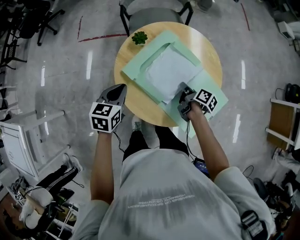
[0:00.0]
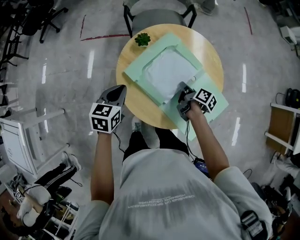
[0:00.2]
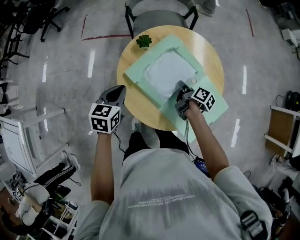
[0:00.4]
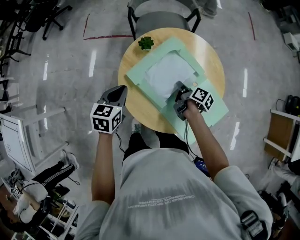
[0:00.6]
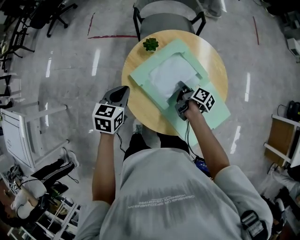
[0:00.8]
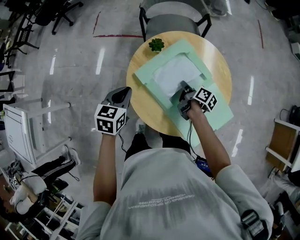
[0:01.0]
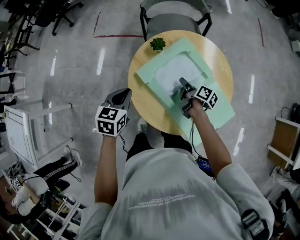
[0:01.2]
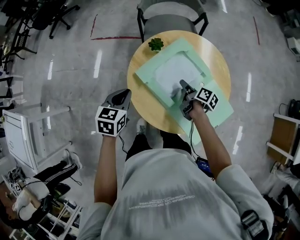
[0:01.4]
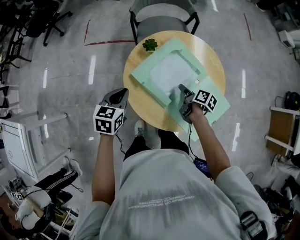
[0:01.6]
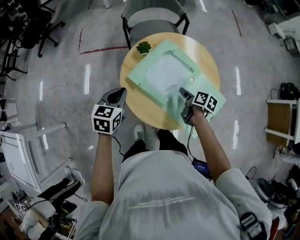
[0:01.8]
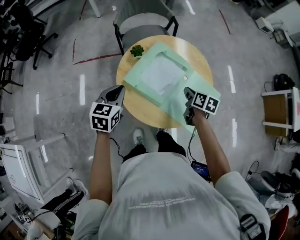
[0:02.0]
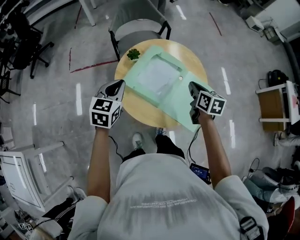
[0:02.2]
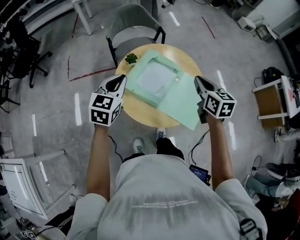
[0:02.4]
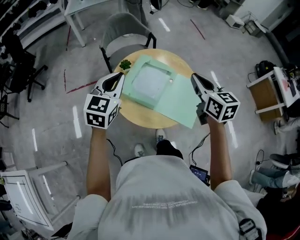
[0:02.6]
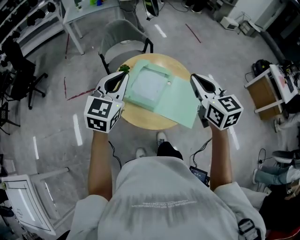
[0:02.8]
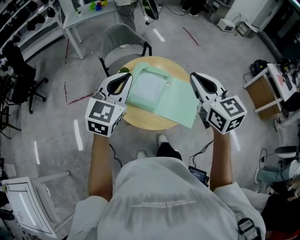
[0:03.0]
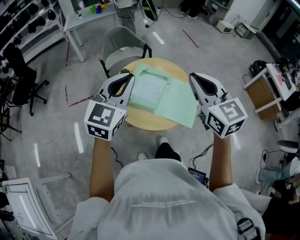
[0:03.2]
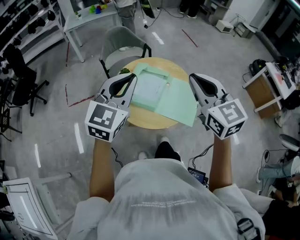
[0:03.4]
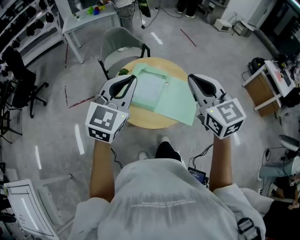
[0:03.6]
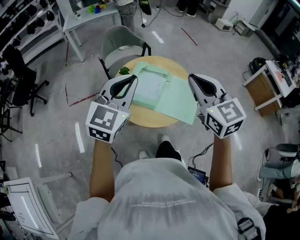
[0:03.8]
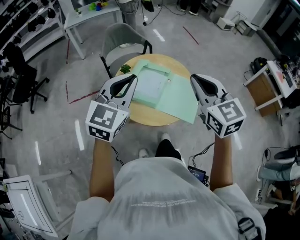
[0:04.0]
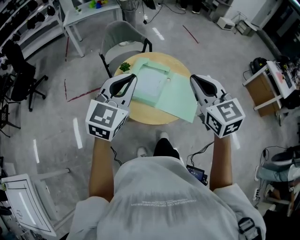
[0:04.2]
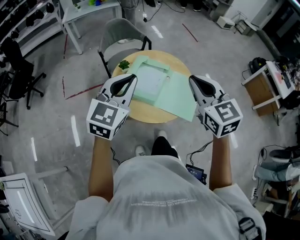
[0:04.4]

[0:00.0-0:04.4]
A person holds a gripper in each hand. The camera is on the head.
0:00.0 to 0:01.4: The right gripper moves to the left, roughly 5 cm, and opens up.
0:01.4 to 0:03.0: The left gripper is displaced upward by about 30 cm, and tilts its fingers about 30 degrees upward, while the right gripper travels upward by approximately 40 cm, twists about 70 degrees counterclockwise, seen from behind, and closes its fingers.
0:03.0 to 0:04.4: There are only small adjustments of the grippers.

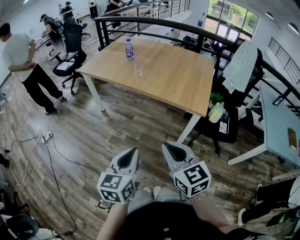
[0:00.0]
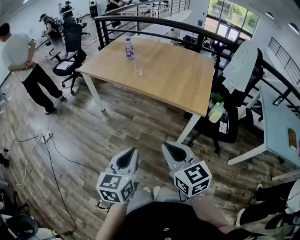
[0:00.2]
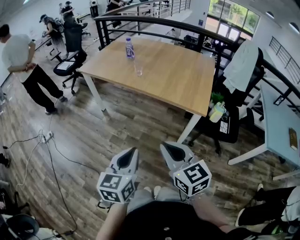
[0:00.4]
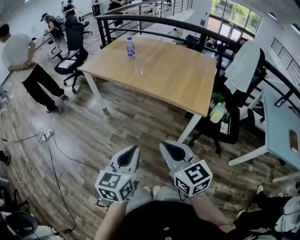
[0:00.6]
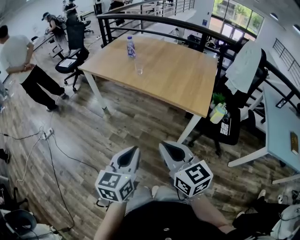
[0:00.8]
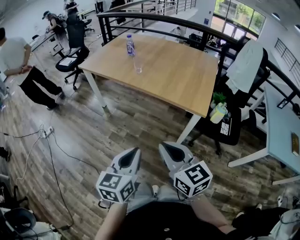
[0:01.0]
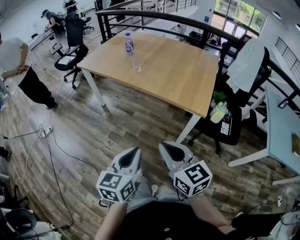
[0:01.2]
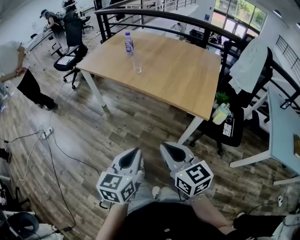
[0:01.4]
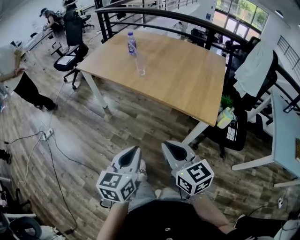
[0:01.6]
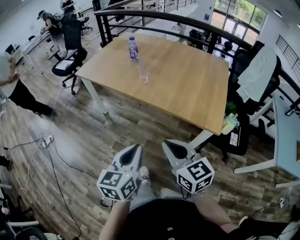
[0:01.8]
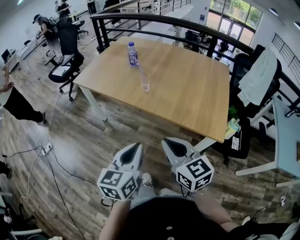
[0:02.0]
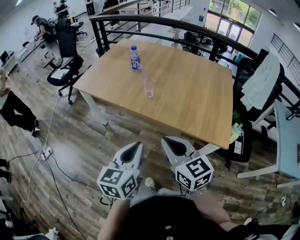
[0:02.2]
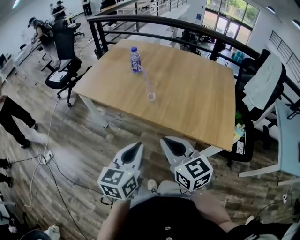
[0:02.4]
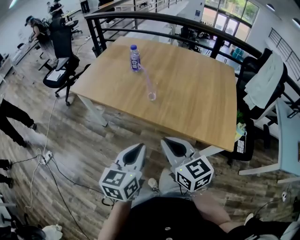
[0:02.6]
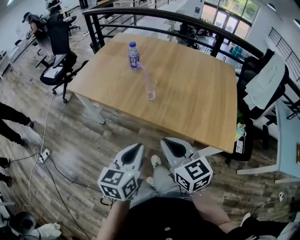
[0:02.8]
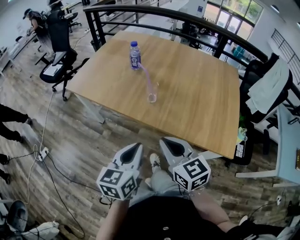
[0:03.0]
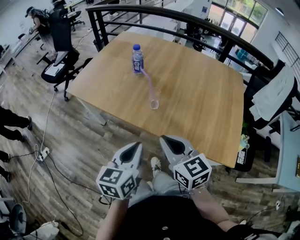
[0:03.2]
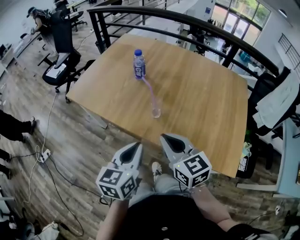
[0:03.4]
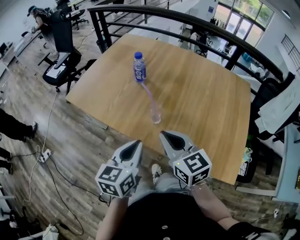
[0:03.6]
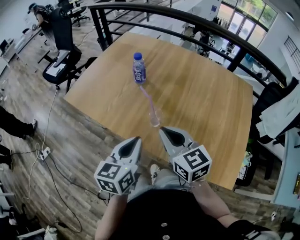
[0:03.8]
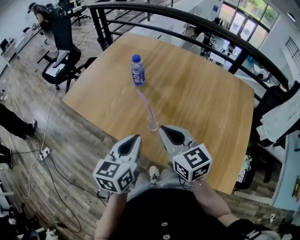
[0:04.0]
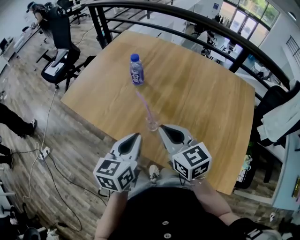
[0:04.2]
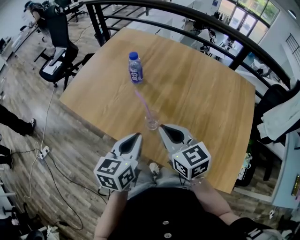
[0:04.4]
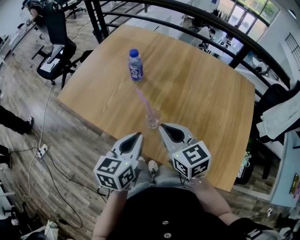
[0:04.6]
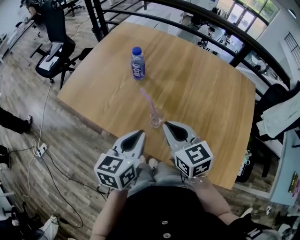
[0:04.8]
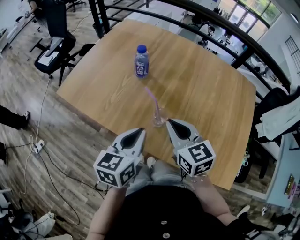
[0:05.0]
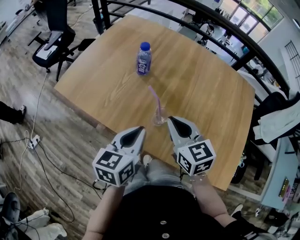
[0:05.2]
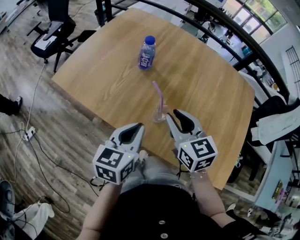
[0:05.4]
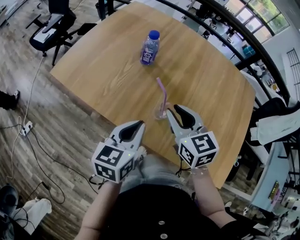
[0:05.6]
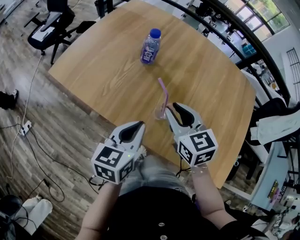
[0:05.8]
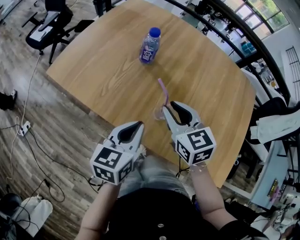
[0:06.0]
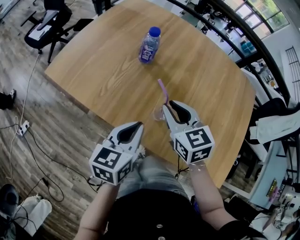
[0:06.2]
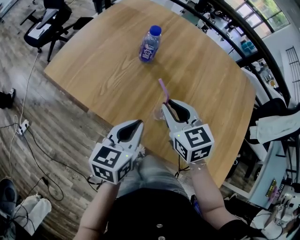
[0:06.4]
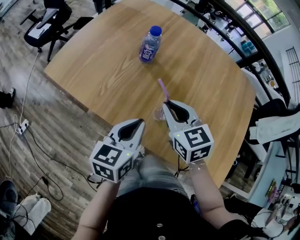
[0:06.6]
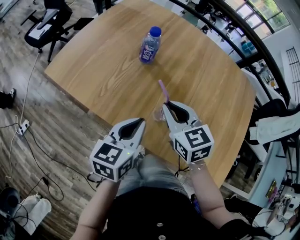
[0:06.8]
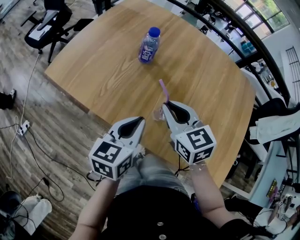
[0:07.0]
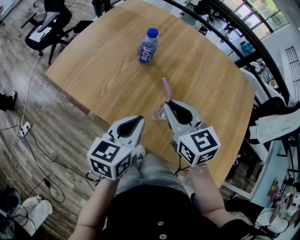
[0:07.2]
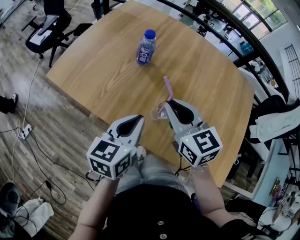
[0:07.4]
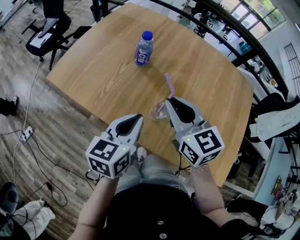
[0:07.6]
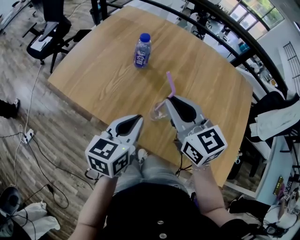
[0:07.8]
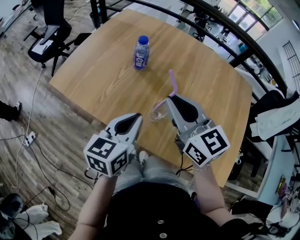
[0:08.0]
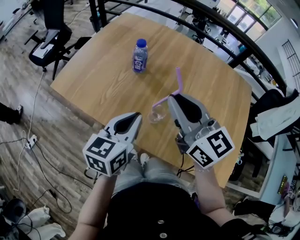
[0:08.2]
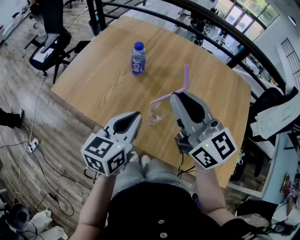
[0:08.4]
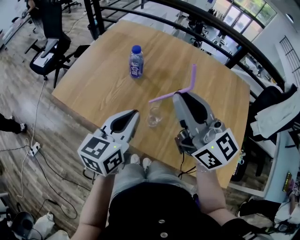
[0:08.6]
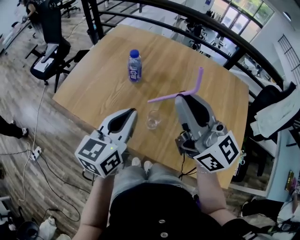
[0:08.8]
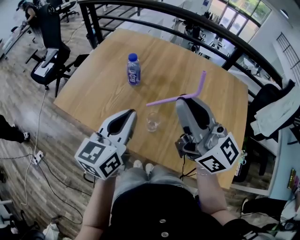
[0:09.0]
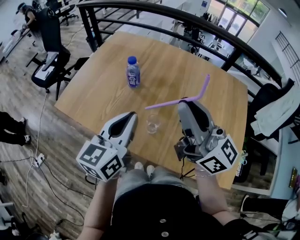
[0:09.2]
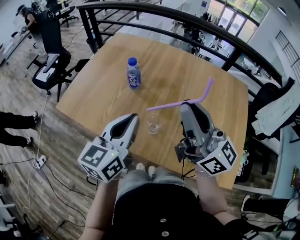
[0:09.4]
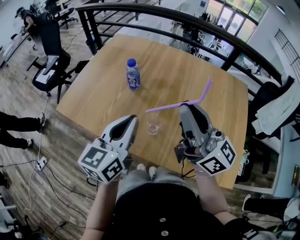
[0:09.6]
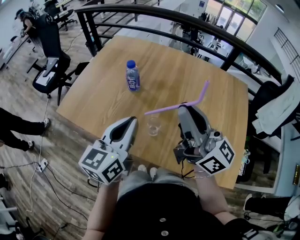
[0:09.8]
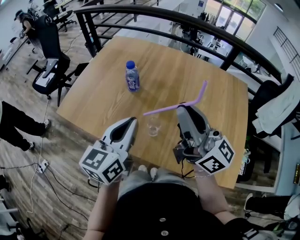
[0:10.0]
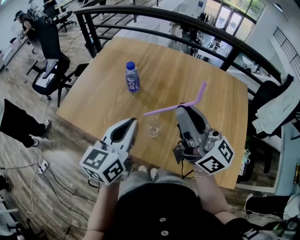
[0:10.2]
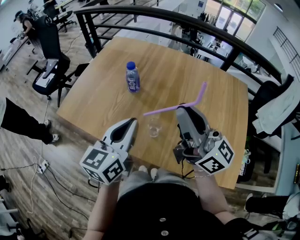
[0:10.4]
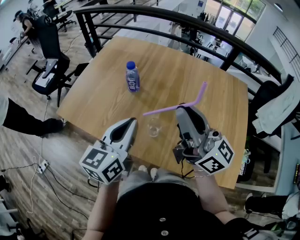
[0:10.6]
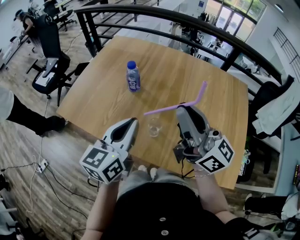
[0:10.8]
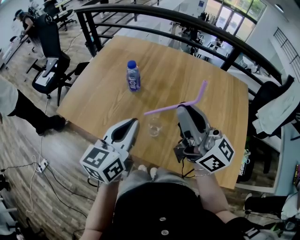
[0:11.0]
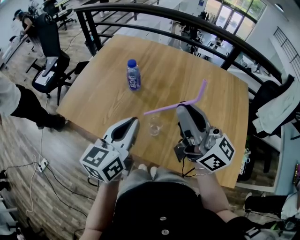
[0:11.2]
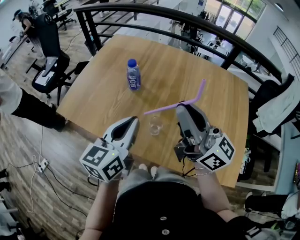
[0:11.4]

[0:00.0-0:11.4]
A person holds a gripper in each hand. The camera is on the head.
0:00.0 to 0:01.4: The right gripper goes about 5 cm forward. The left gripper shifts roughly 10 cm forward and to the right.
0:01.4 to 0:02.8: The right gripper goes roughly 35 cm forward and to the left, while the left gripper goes roughly 35 cm forward.
0:02.8 to 0:04.2: Both grippers move forward, approximately 30 cm.
0:04.2 to 0:05.6: The left gripper shifts by approximately 5 cm. Meanwhile the right gripper travels forward by about 5 cm, and opens up.
0:05.6 to 0:07.2: The grippers move only a little.
0:07.2 to 0:08.6: The right gripper travels upward by roughly 20 cm, and points its fingers approximately 40 degrees further upward. Meanwhile the left gripper travels upward by roughly 10 cm.
0:08.6 to 0:10.0: There are only small adjustments of the grippers.
0:10.0 to 0:11.4: Both grippers stay put.

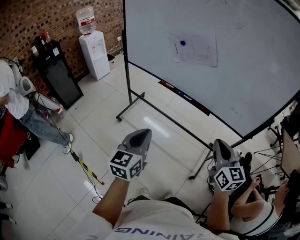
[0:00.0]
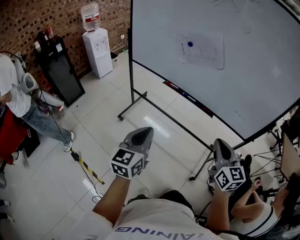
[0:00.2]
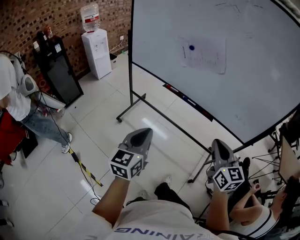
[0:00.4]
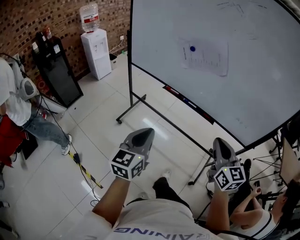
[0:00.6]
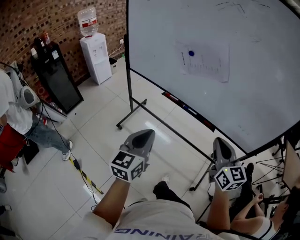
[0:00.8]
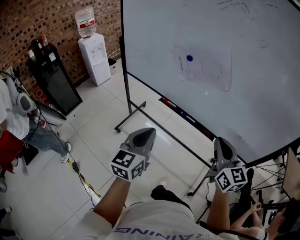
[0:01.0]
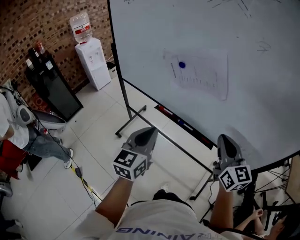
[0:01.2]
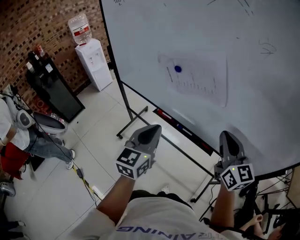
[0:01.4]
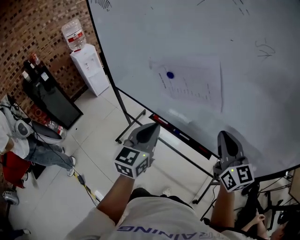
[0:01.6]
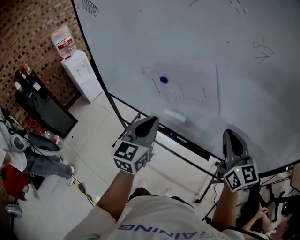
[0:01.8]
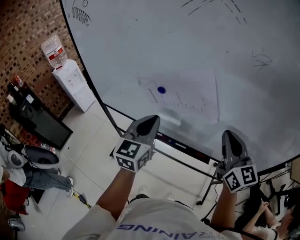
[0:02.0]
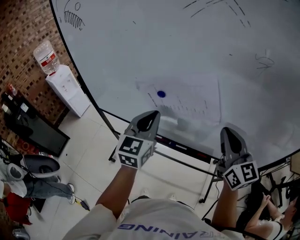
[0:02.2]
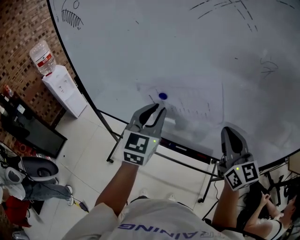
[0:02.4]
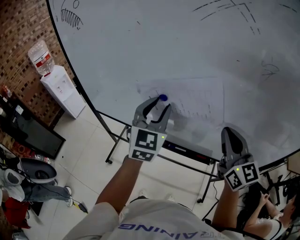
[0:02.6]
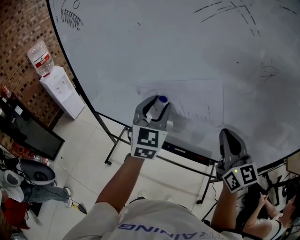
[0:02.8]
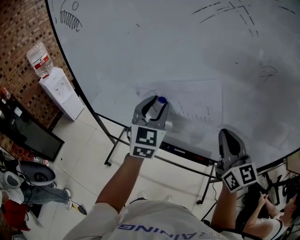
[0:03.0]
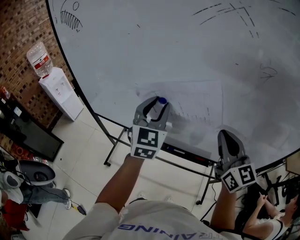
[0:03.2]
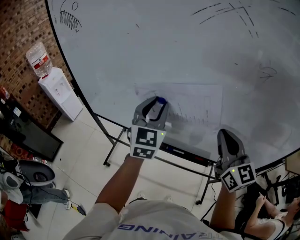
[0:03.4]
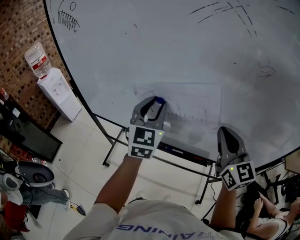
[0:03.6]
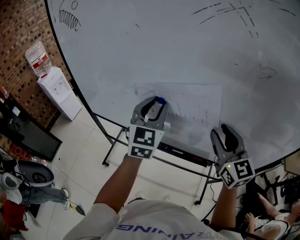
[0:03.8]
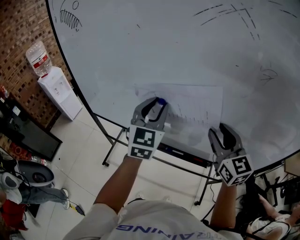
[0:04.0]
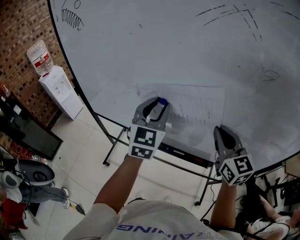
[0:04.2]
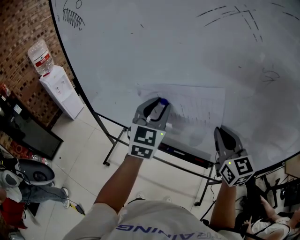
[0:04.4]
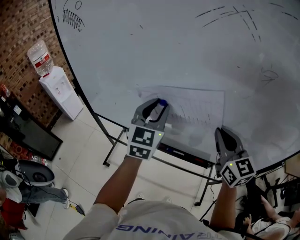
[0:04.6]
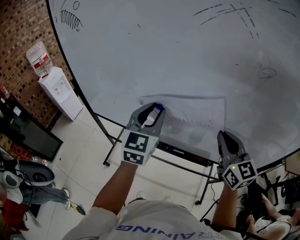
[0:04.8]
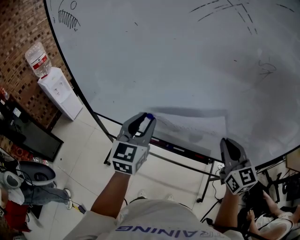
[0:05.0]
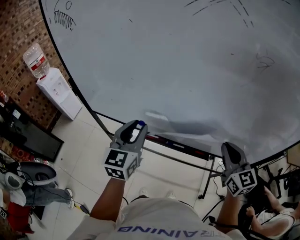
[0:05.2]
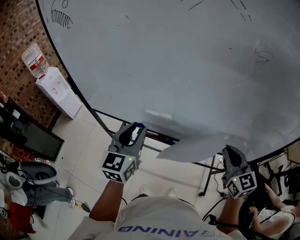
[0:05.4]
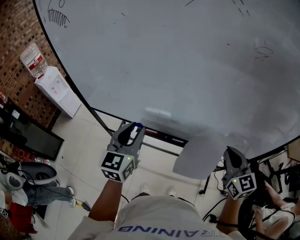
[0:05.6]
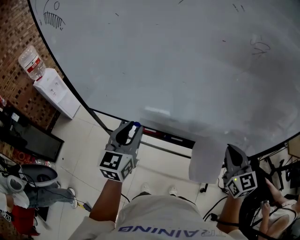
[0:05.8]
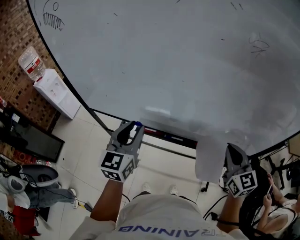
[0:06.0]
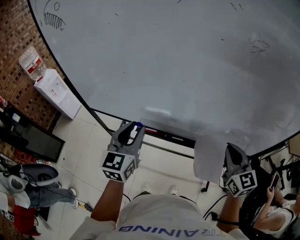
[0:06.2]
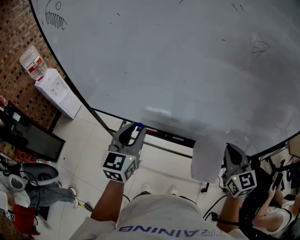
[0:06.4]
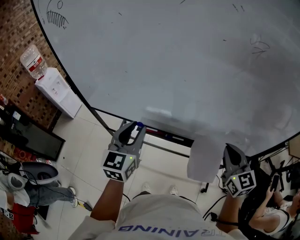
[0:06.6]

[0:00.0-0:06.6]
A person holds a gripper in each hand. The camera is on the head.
0:00.0 to 0:01.6: The two grippers go some 35 cm forward.
0:01.6 to 0:03.2: The left gripper travels forward and upward by approximately 20 cm, rotates some 20 degrees, and opens up. Meanwhile the right gripper goes roughly 5 cm upward.
0:03.2 to 0:05.0: The right gripper shifts by some 5 cm, and opens, then closes once more. The left gripper shifts roughly 5 cm backward.
0:05.0 to 0:06.6: The right gripper travels backward and downward by approximately 10 cm. The left gripper heads backward, covering roughly 5 cm.

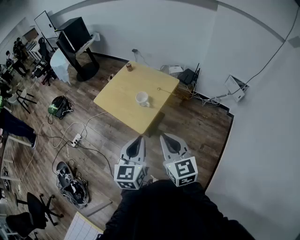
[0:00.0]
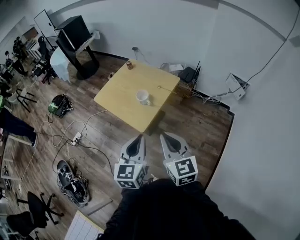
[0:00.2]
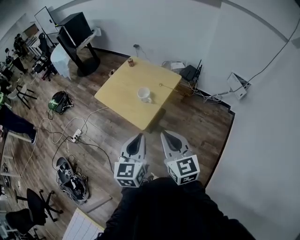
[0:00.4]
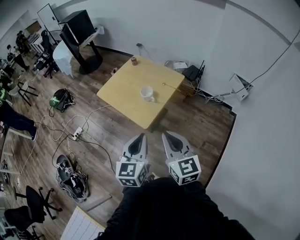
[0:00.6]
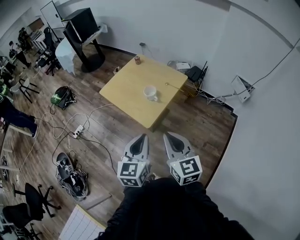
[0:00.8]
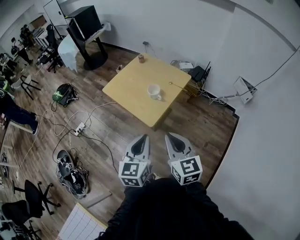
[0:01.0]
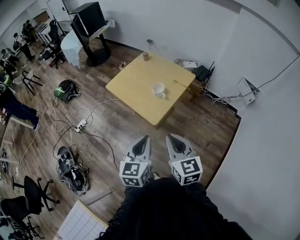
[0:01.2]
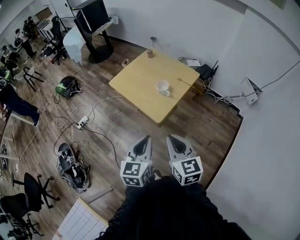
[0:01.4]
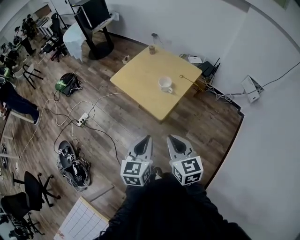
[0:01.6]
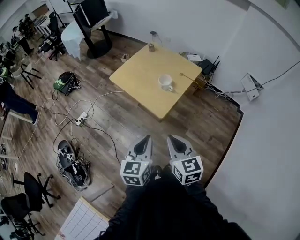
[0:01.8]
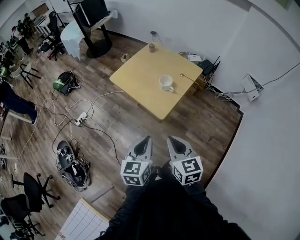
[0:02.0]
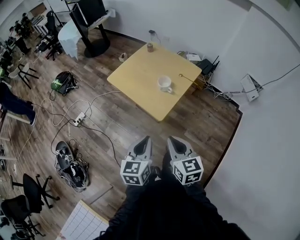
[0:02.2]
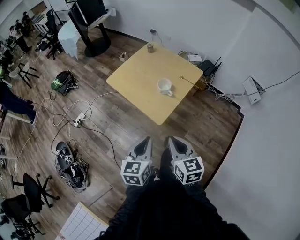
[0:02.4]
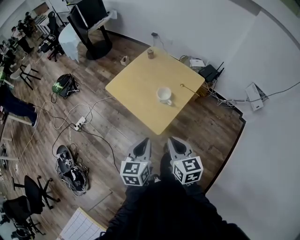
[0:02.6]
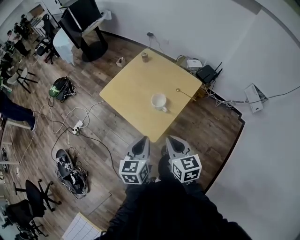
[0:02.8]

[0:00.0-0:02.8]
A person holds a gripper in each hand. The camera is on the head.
0:00.0 to 0:01.4: The left gripper shifts roughly 10 cm to the left and downward. The right gripper heads to the left, covering approximately 10 cm.
0:01.4 to 0:02.8: The left gripper travels forward by some 20 cm; the right gripper heads forward and downward, covering about 20 cm.
